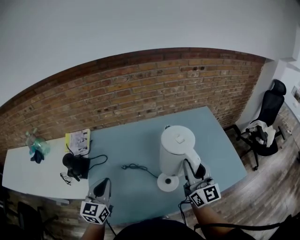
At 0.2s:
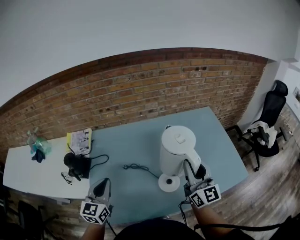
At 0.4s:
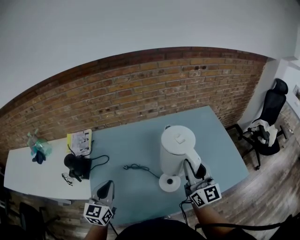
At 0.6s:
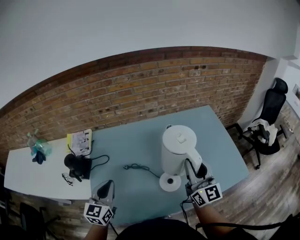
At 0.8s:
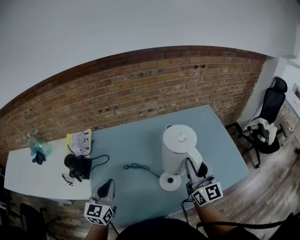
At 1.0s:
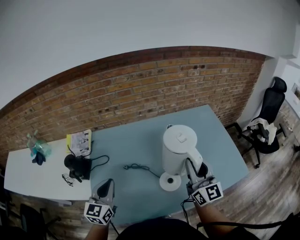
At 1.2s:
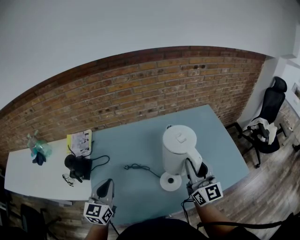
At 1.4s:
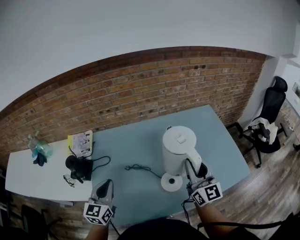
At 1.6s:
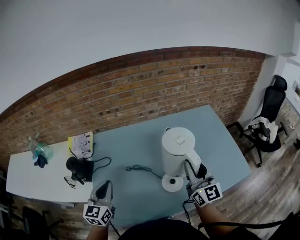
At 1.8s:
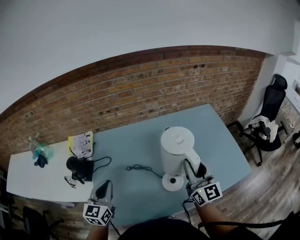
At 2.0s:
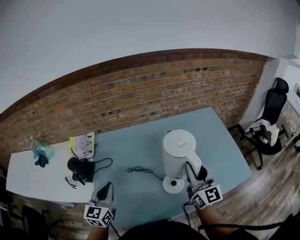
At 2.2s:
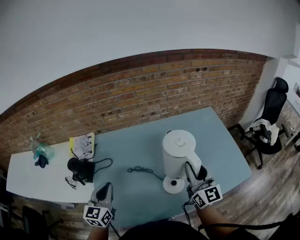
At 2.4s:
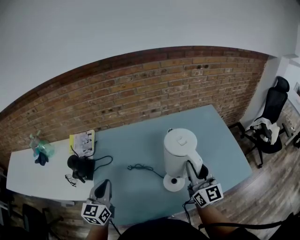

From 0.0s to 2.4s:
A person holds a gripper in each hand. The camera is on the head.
From 0.0s to 1.2s: Neither gripper changes place.
From 1.2s to 2.4s: The grippers move only a little.

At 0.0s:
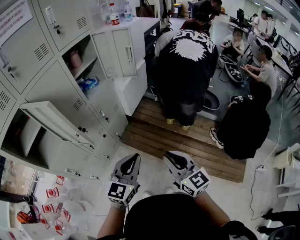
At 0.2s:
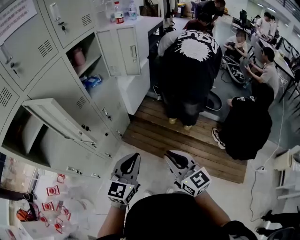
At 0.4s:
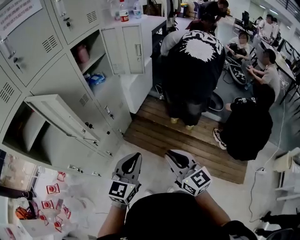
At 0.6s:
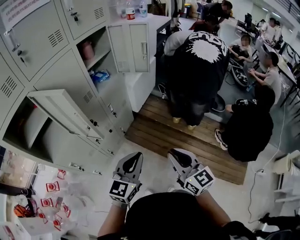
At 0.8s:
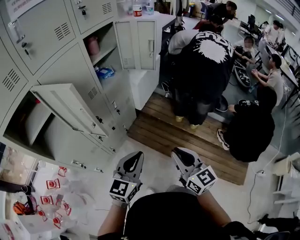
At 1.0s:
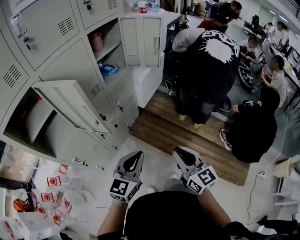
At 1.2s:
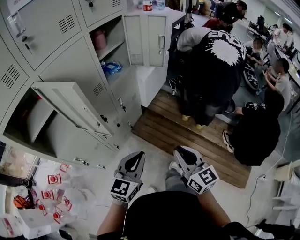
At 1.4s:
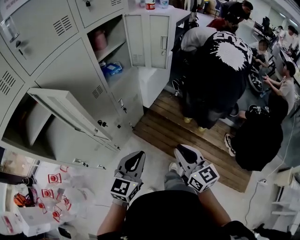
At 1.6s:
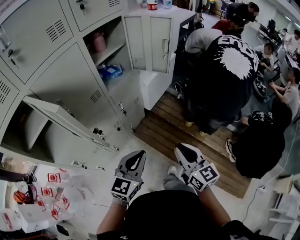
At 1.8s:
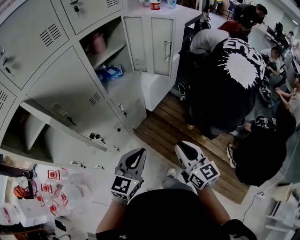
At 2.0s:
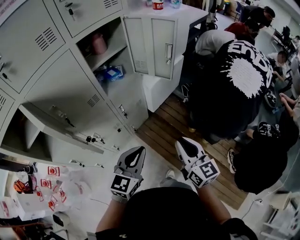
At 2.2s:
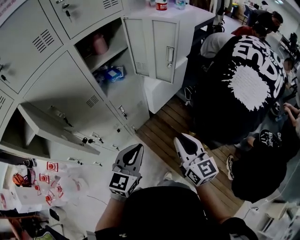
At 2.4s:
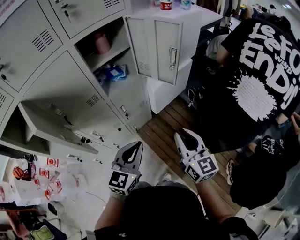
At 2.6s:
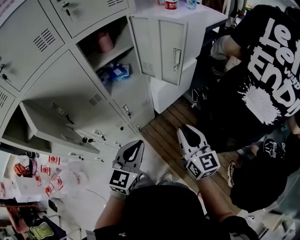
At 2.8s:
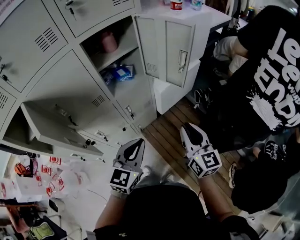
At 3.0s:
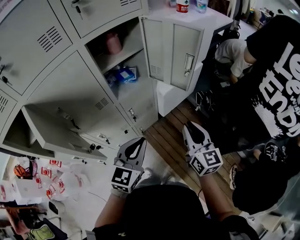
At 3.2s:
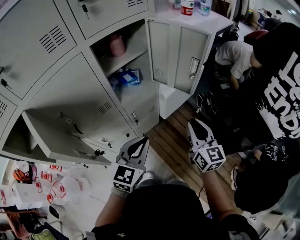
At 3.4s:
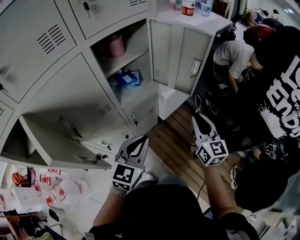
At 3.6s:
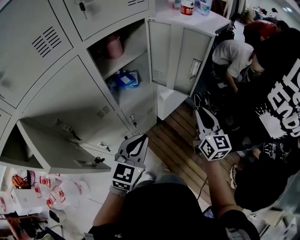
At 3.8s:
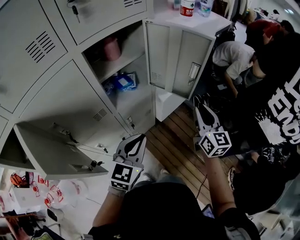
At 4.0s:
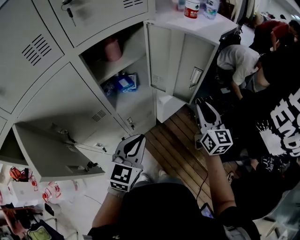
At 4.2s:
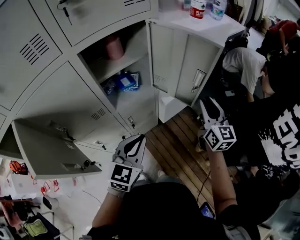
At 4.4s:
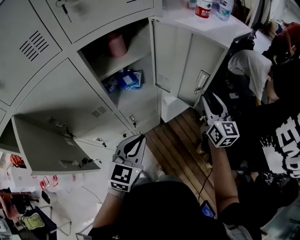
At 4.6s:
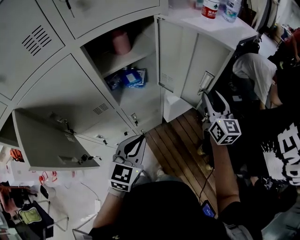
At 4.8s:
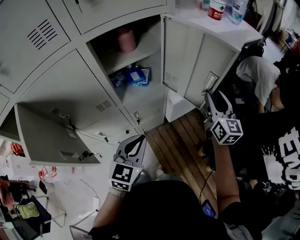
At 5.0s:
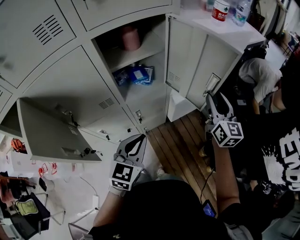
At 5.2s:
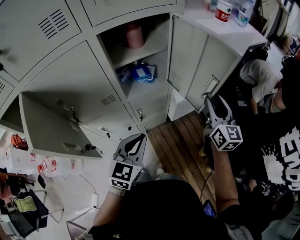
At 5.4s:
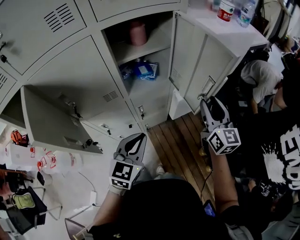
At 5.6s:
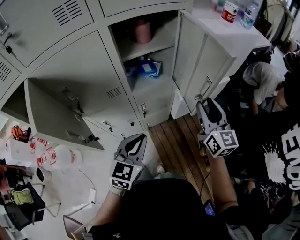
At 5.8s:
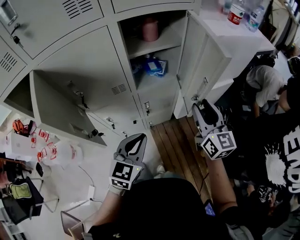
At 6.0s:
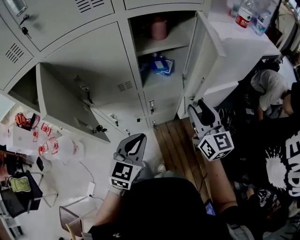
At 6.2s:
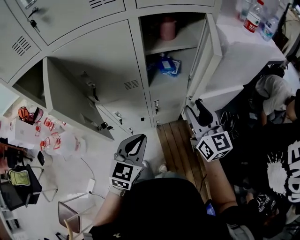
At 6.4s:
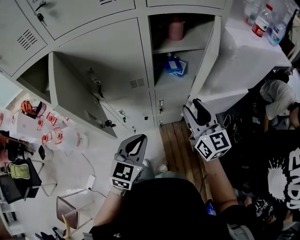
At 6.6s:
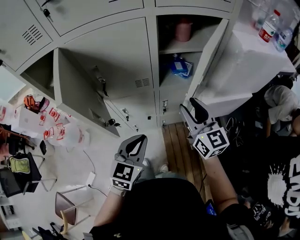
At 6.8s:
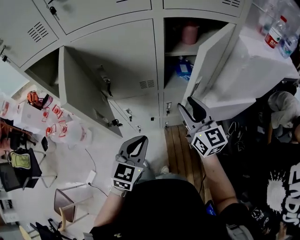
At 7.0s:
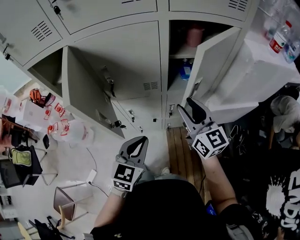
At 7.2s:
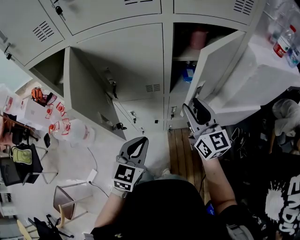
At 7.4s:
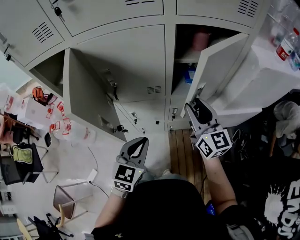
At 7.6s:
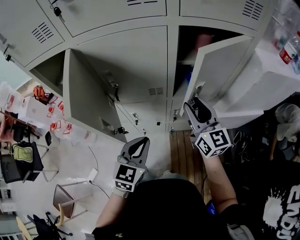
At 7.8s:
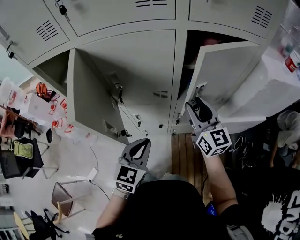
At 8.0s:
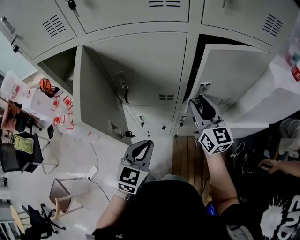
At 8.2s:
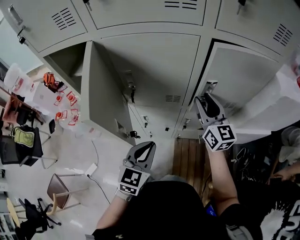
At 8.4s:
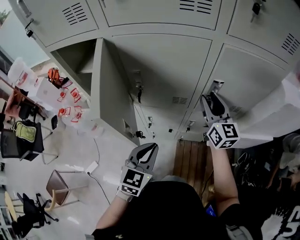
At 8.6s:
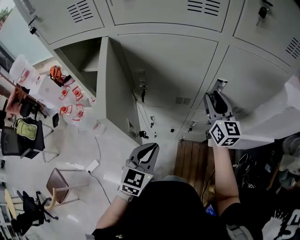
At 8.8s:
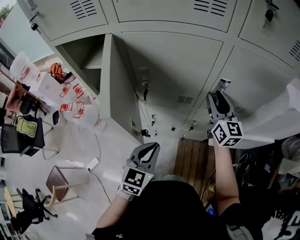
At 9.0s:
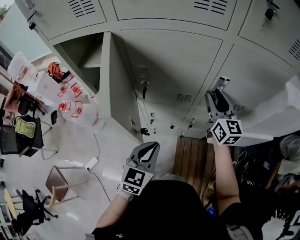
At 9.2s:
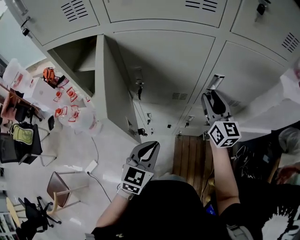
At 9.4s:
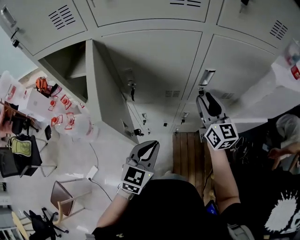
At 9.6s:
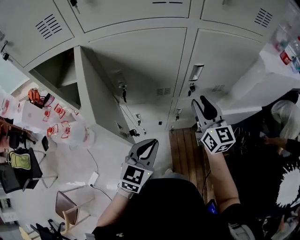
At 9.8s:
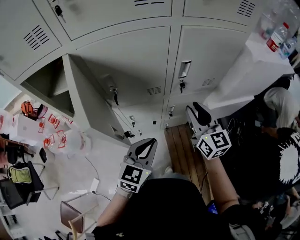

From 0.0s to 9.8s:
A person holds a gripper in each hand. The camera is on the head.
From 0.0s to 1.4s: The right gripper goes about 10 cm forward and to the left. Meanwhile the left gripper moves to the left and forward, some 10 cm.
From 1.4s to 2.8s: Both grippers move forward, about 25 cm.
From 2.8s to 4.2s: The left gripper heads forward, covering approximately 10 cm. The right gripper heads forward, covering approximately 20 cm.
From 4.2s to 5.6s: The left gripper moves backward, roughly 5 cm. The right gripper travels to the left by some 10 cm.
From 5.6s to 7.0s: The right gripper heads to the left, covering about 20 cm, and changes its angle by approximately 30 degrees, while the left gripper shifts approximately 10 cm to the left.
From 7.0s to 8.4s: The right gripper goes about 15 cm forward. The left gripper ends up some 5 cm from where it was.
From 8.4s to 9.8s: The left gripper changes its angle by roughly 20 degrees, while the right gripper moves backward, approximately 10 cm.

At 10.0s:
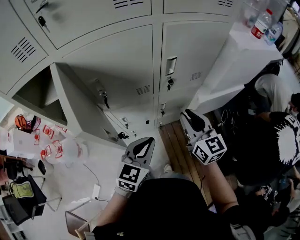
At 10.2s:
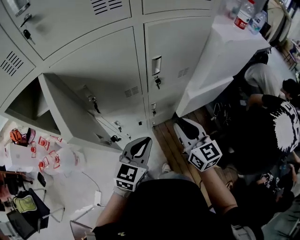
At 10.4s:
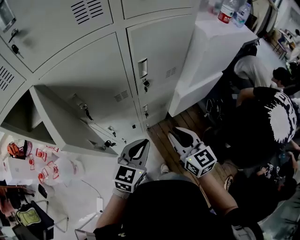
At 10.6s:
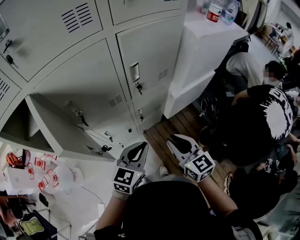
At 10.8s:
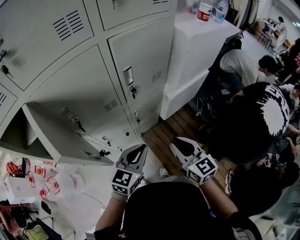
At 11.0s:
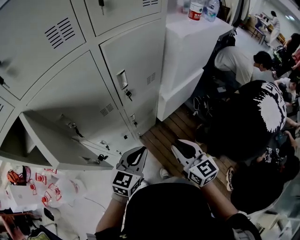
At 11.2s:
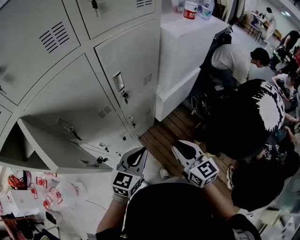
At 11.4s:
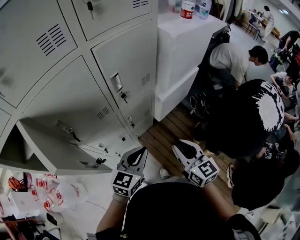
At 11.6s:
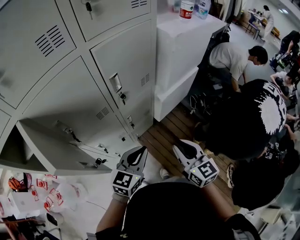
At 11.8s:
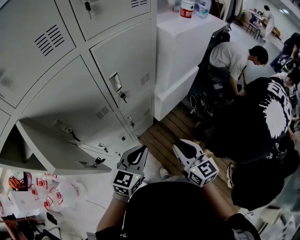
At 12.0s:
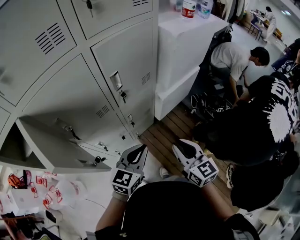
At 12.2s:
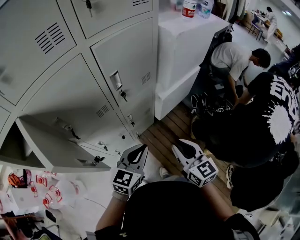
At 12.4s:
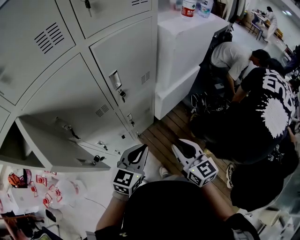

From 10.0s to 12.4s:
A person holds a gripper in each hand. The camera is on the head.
From 10.0s to 11.2s: The right gripper heads backward and to the right, covering some 15 cm, while the left gripper shifts roughly 5 cm to the right, and turns by approximately 20 degrees.
From 11.2s to 12.4s: There are only small adjustments of the grippers.

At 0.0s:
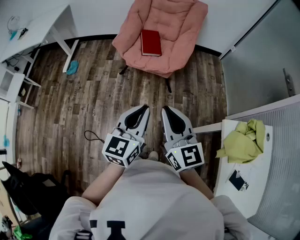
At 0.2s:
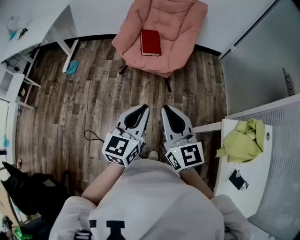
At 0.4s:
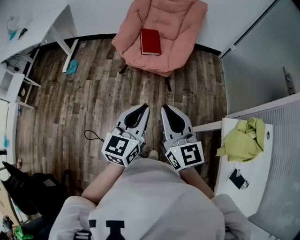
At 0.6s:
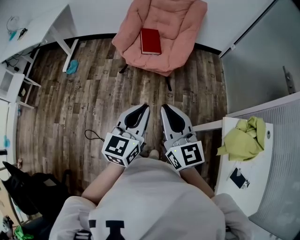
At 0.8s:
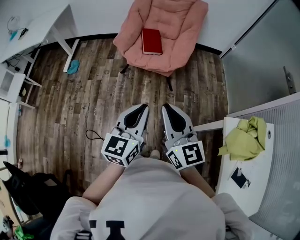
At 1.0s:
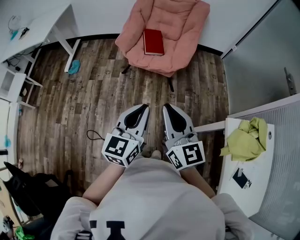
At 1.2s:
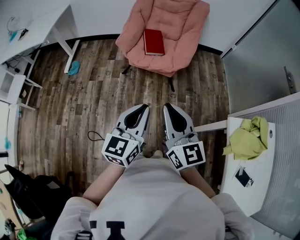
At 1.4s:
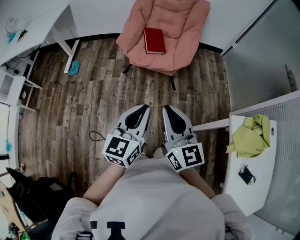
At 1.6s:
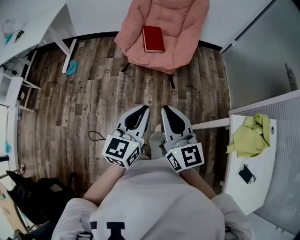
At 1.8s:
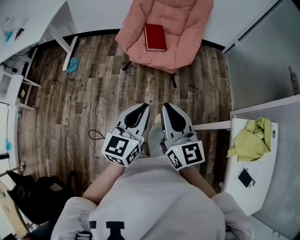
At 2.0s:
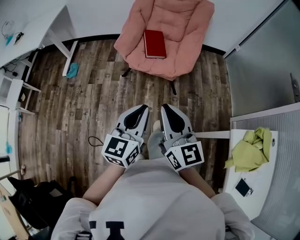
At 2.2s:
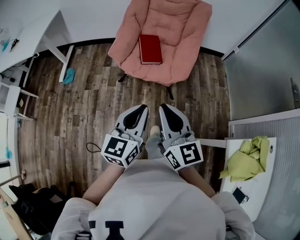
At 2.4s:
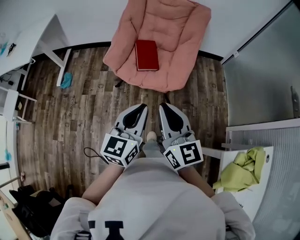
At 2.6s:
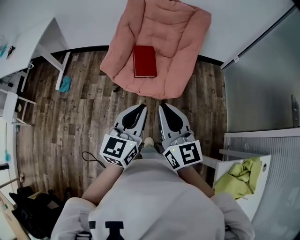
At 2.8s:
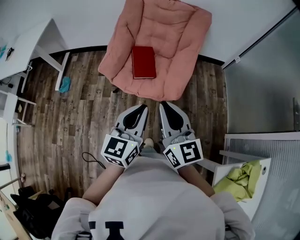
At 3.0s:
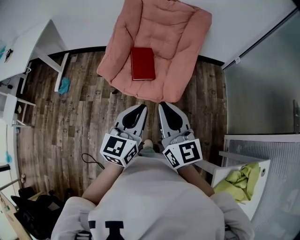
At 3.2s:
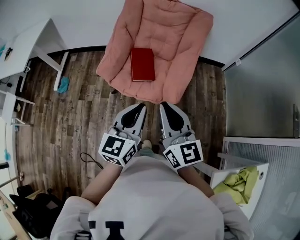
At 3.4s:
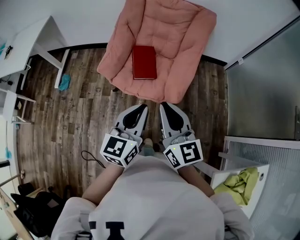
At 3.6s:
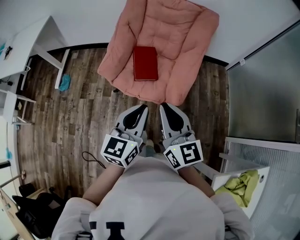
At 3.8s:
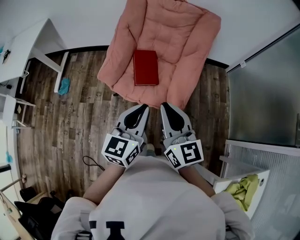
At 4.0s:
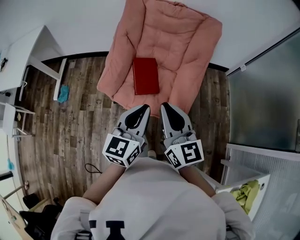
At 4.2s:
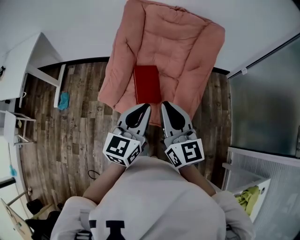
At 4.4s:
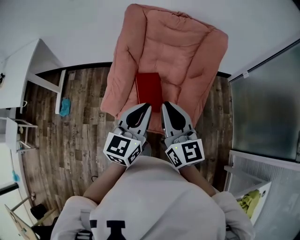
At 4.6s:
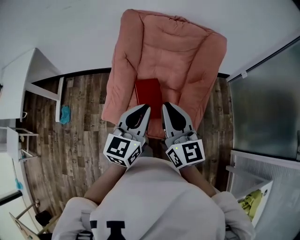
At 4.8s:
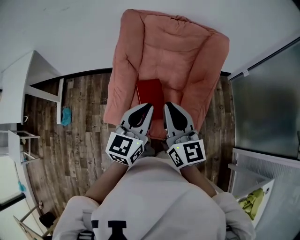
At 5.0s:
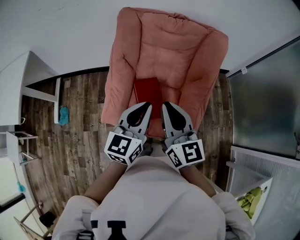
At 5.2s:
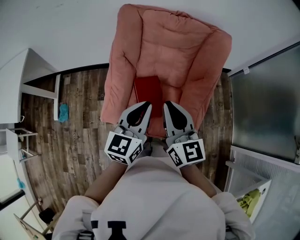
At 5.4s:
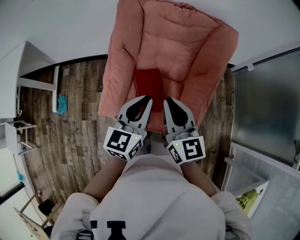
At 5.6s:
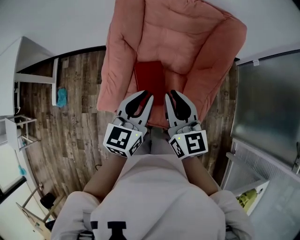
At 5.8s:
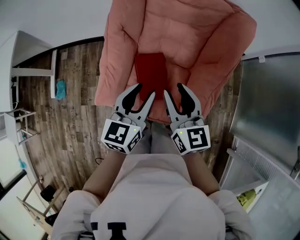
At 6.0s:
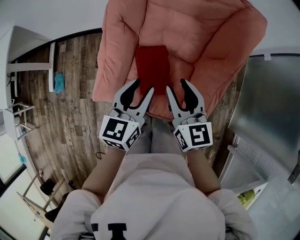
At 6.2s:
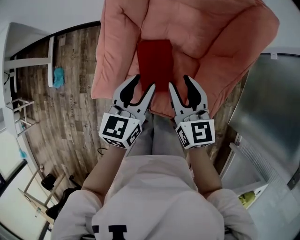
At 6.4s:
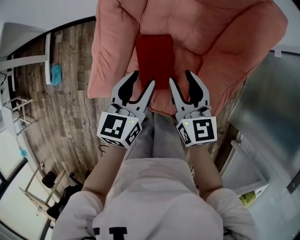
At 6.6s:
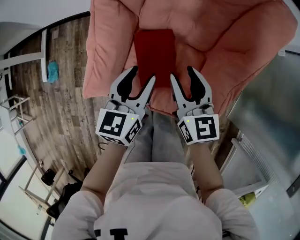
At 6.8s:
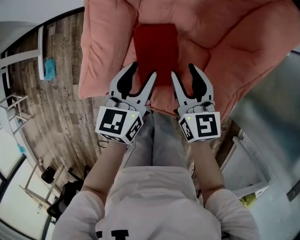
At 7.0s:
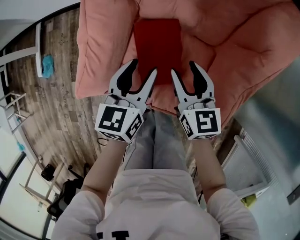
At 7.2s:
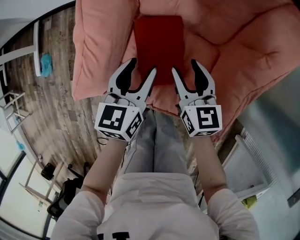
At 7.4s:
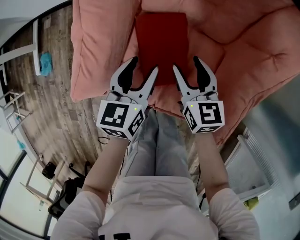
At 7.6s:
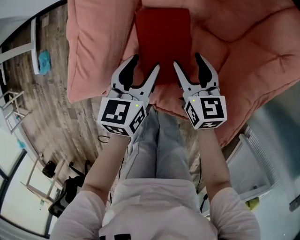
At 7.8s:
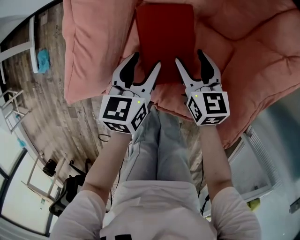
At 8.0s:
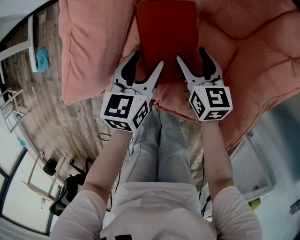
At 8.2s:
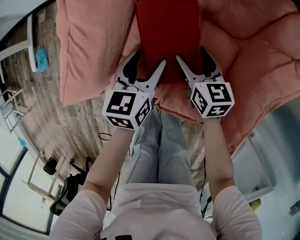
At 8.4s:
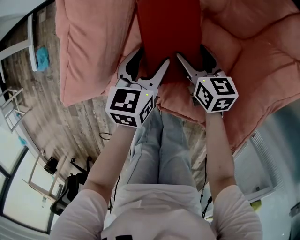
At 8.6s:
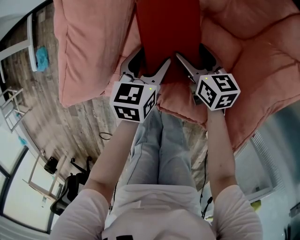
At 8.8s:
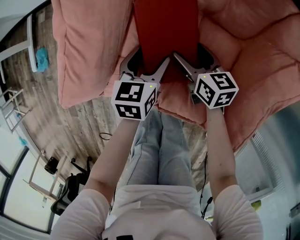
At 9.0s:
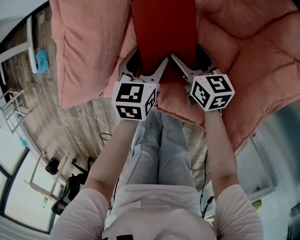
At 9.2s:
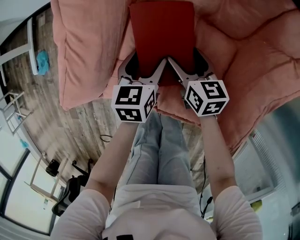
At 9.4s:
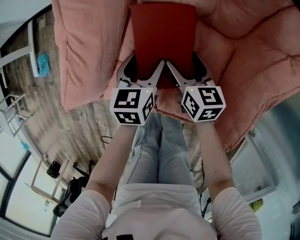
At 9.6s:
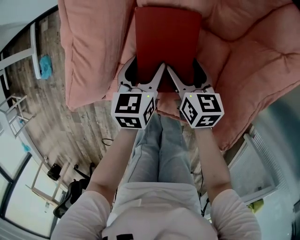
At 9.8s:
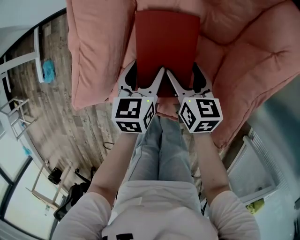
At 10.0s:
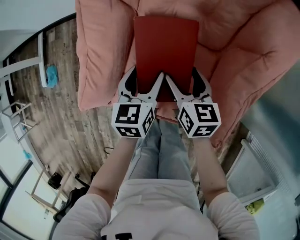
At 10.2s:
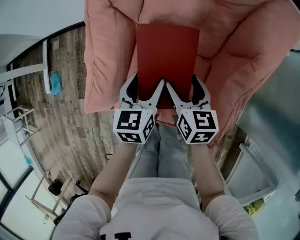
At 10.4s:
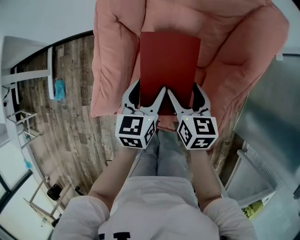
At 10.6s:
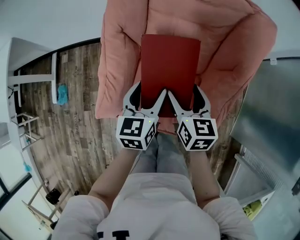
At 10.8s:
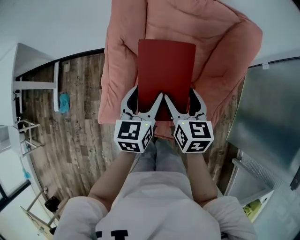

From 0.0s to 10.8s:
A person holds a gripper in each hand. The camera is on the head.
From 0.0s to 1.6s: Both grippers travel together to the left, some 5 cm.
From 1.6s to 3.0s: Both grippers move forward, about 30 cm.
From 3.0s to 4.6s: The grippers both shift forward by about 30 cm.
From 4.6s to 6.2s: Both grippers move downward and forward, approximately 20 cm. The left gripper opens; the right gripper opens its fingers.
From 6.2s to 7.8s: Both grippers travel together downward, some 25 cm.
From 7.8s to 9.2s: The grippers both shift downward by roughly 5 cm.
From 9.2s to 10.8s: The grippers both shift upward by some 30 cm.
